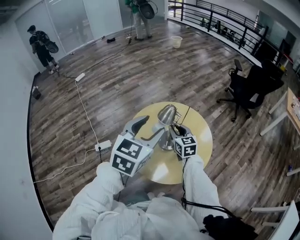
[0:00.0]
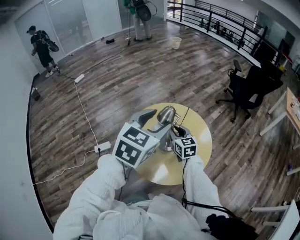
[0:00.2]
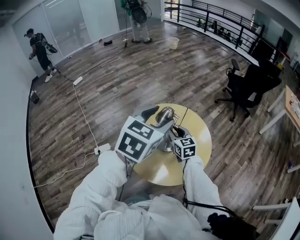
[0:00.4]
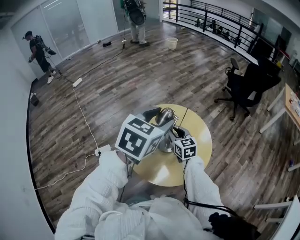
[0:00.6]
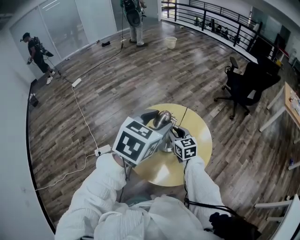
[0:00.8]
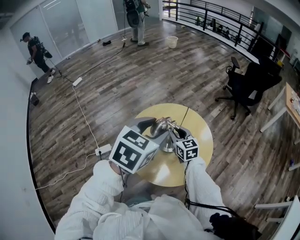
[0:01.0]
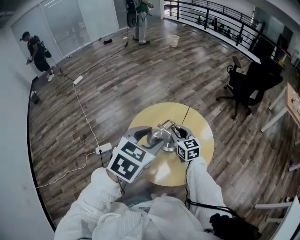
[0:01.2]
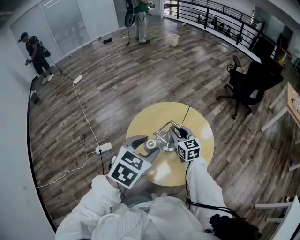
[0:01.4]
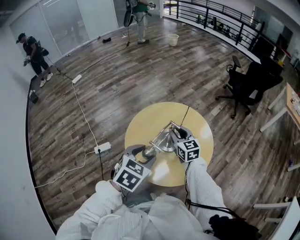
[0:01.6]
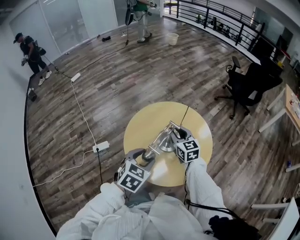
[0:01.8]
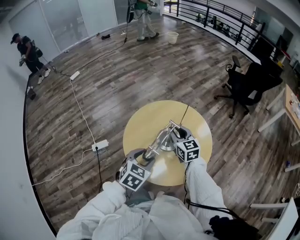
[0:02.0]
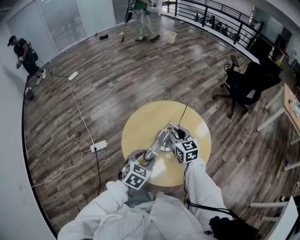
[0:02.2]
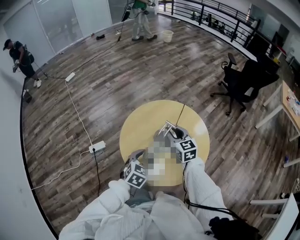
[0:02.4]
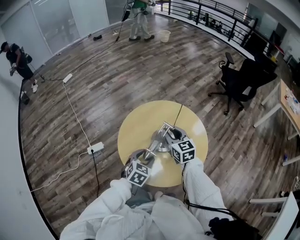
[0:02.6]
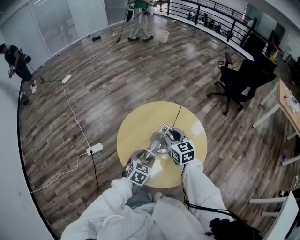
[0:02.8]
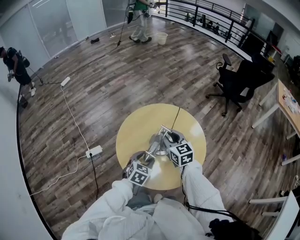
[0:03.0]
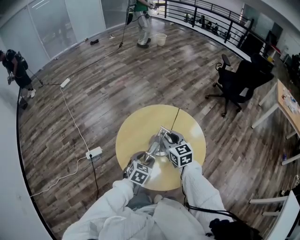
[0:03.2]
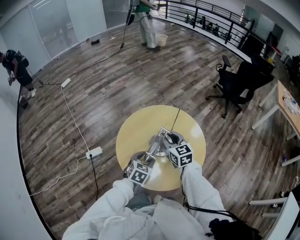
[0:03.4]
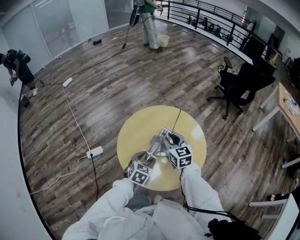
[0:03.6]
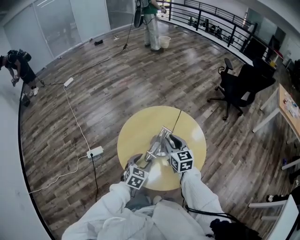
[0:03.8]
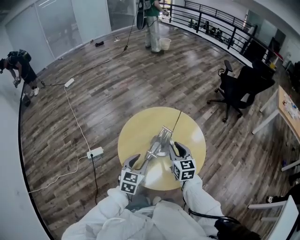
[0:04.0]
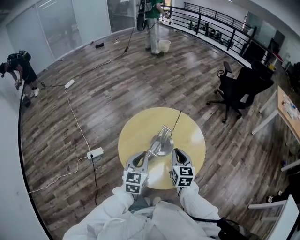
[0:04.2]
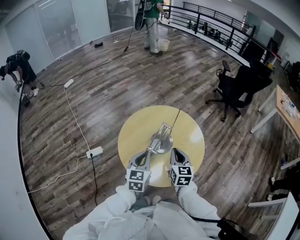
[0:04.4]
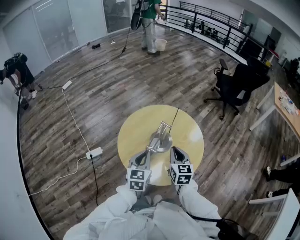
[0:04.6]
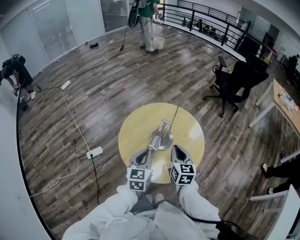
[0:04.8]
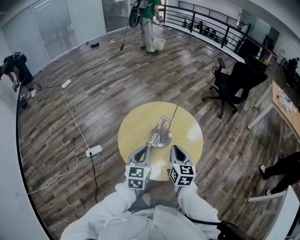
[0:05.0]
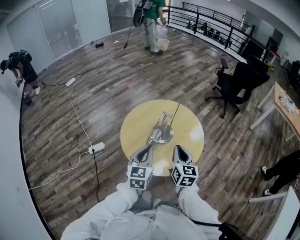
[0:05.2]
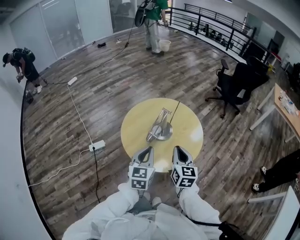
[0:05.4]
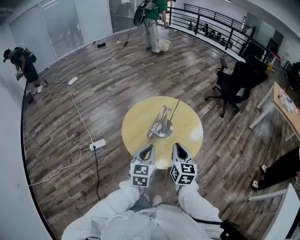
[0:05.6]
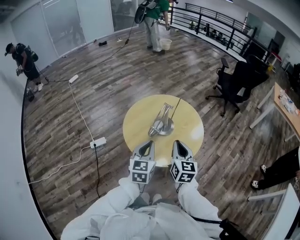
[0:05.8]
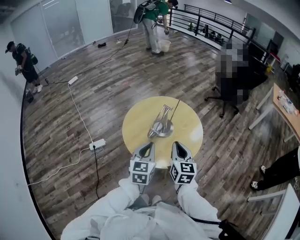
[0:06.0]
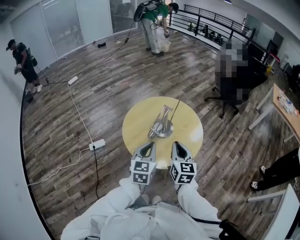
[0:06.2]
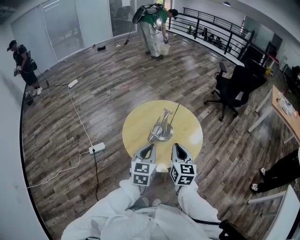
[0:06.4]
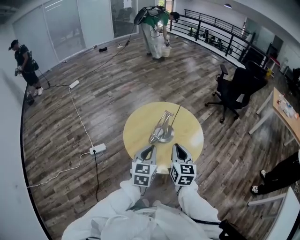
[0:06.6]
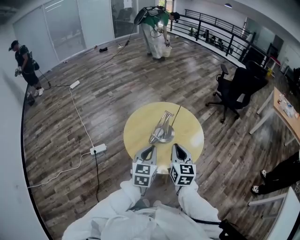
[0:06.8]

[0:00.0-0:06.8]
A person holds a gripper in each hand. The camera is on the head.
0:00.0 to 0:01.4: The left gripper goes some 5 cm downward, and rotates roughly 20 degrees.
0:01.4 to 0:02.8: The left gripper is displaced downward by some 20 cm.
0:02.8 to 0:04.0: The left gripper travels upward by about 5 cm. The right gripper moves backward, about 5 cm.
0:04.0 to 0:05.4: The right gripper travels backward by about 15 cm, and closes its fingers. Meanwhile the left gripper goes approximately 10 cm backward and upward, and closes.
0:05.4 to 0:06.8: There are only small adjustments of the grippers.

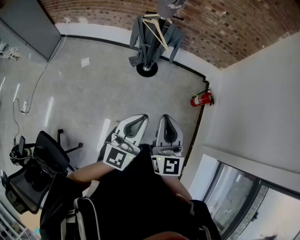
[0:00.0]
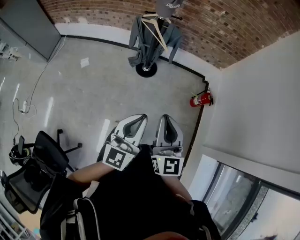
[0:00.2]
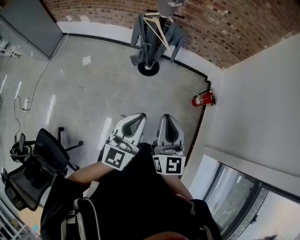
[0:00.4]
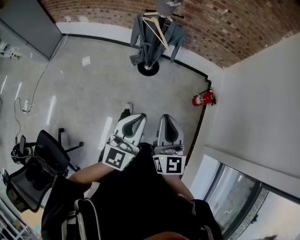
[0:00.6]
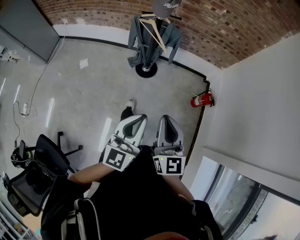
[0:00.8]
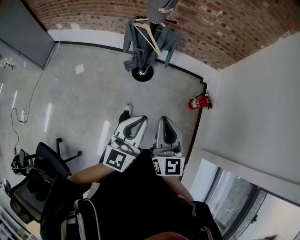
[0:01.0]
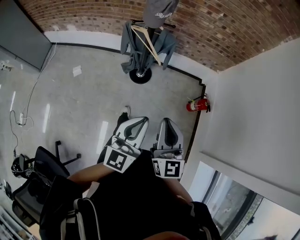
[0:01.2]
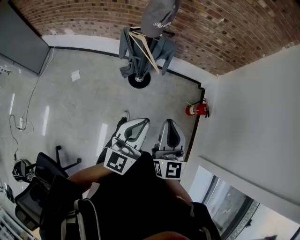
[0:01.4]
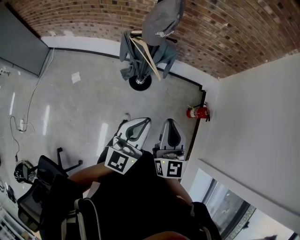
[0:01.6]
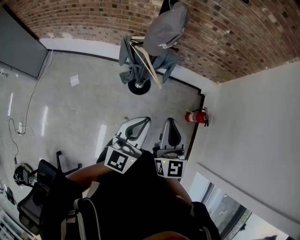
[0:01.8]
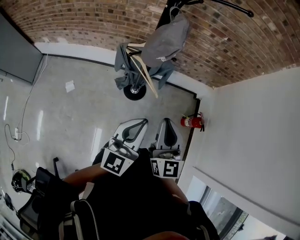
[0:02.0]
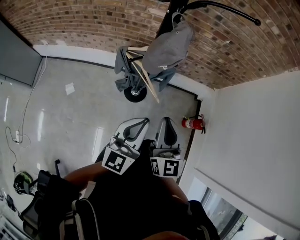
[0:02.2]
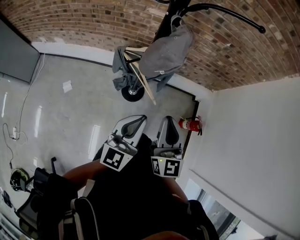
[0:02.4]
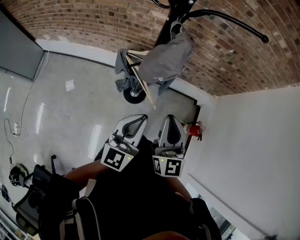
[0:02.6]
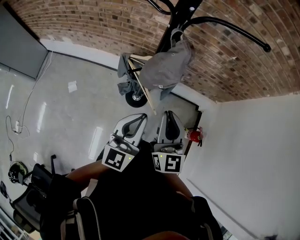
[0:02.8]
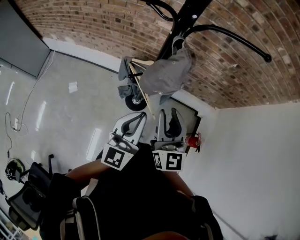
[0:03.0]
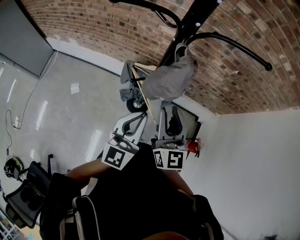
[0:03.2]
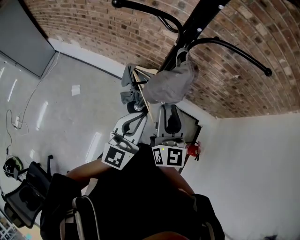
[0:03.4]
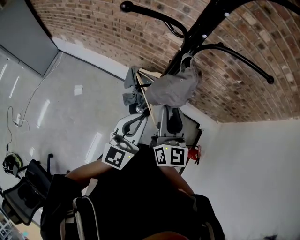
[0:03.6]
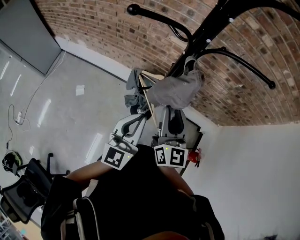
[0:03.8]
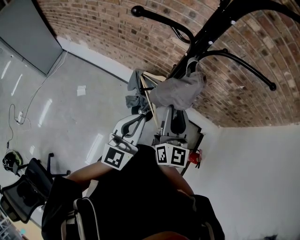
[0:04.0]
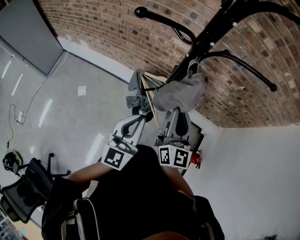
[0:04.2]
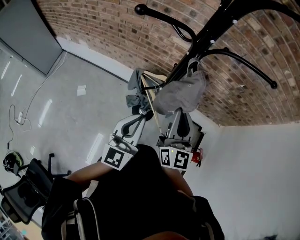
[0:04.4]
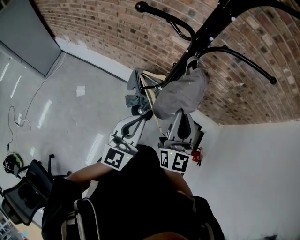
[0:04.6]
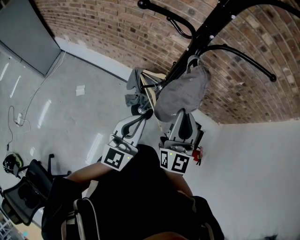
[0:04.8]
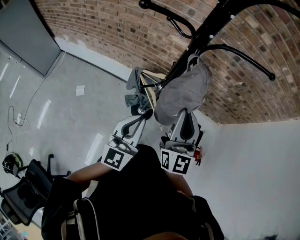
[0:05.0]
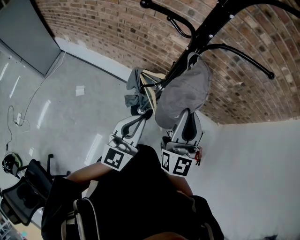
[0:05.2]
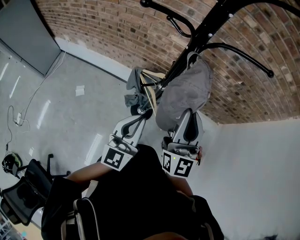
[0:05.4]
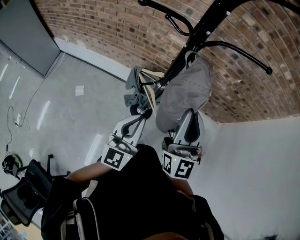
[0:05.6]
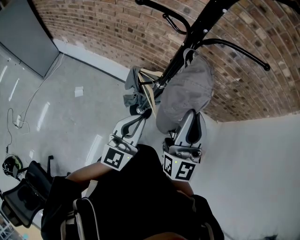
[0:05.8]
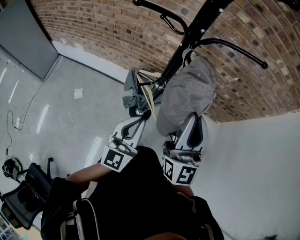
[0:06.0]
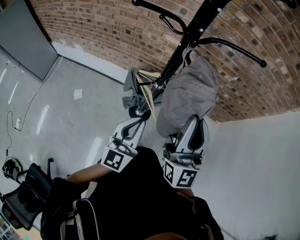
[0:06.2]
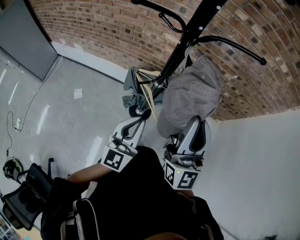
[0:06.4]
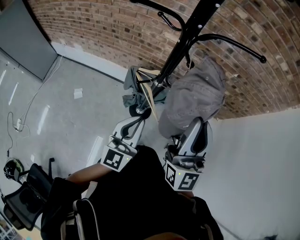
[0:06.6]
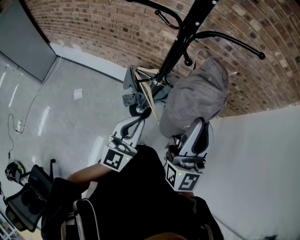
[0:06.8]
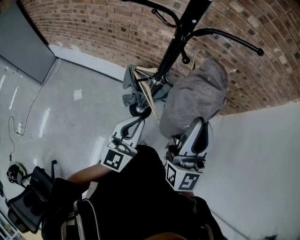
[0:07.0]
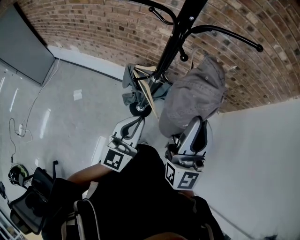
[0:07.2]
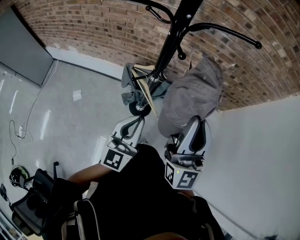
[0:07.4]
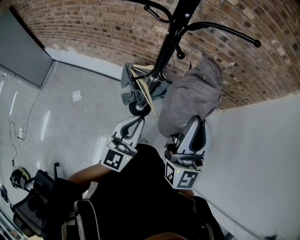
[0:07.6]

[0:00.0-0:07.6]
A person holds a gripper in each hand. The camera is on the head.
0:00.0 to 0:01.6: The grippers both shift forward by roughly 25 cm.
0:01.6 to 0:03.0: Both grippers move forward, roughly 25 cm. The right gripper opens up.
0:03.0 to 0:04.6: The right gripper changes place by roughly 5 cm.
0:04.6 to 0:06.0: The right gripper goes approximately 10 cm upward and backward.
0:06.0 to 0:07.6: The grippers make only small movements.

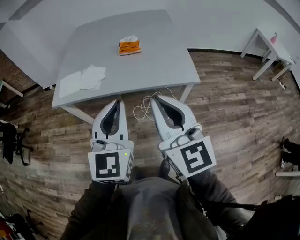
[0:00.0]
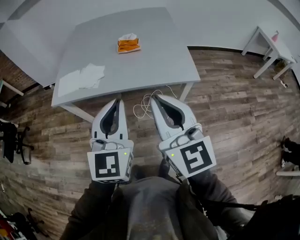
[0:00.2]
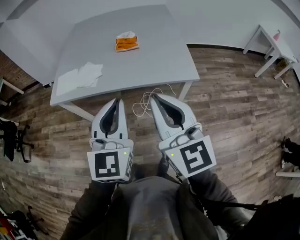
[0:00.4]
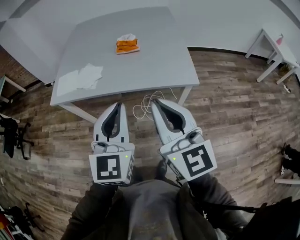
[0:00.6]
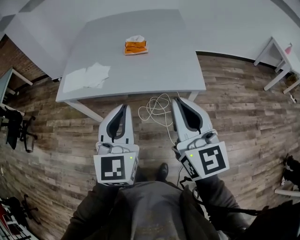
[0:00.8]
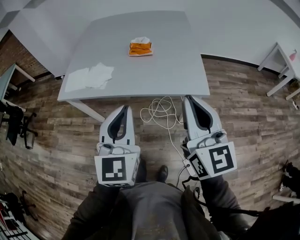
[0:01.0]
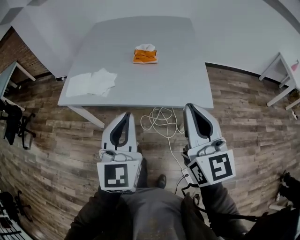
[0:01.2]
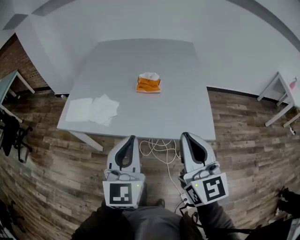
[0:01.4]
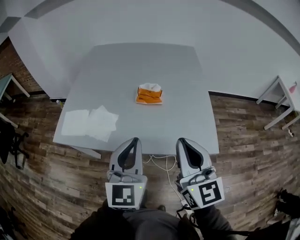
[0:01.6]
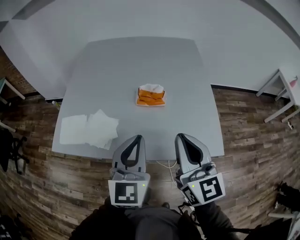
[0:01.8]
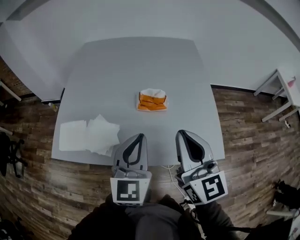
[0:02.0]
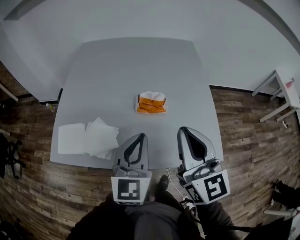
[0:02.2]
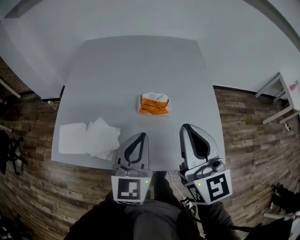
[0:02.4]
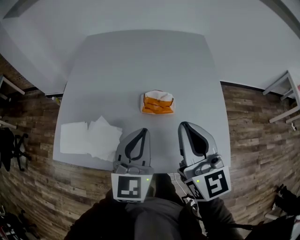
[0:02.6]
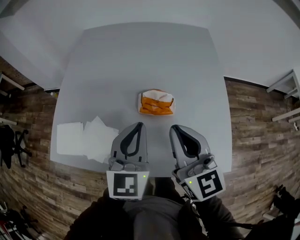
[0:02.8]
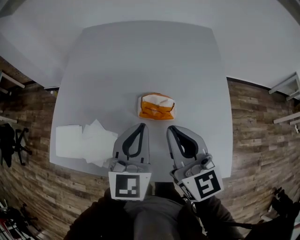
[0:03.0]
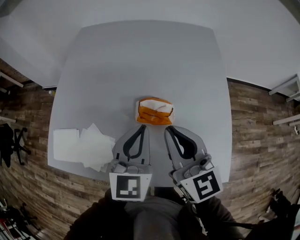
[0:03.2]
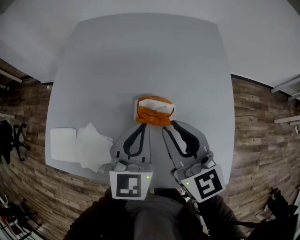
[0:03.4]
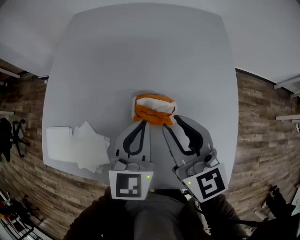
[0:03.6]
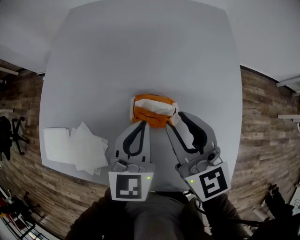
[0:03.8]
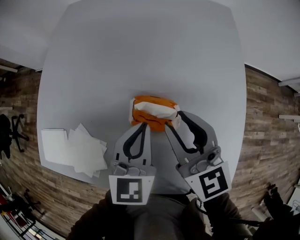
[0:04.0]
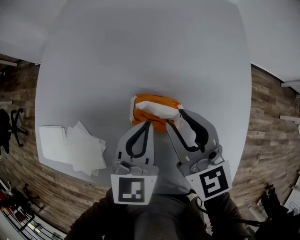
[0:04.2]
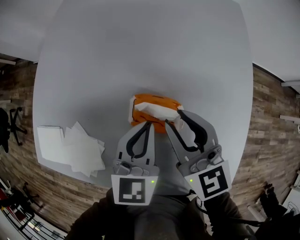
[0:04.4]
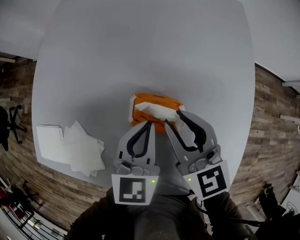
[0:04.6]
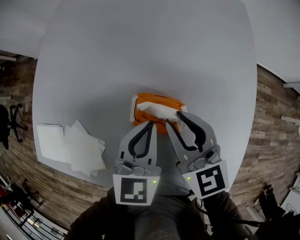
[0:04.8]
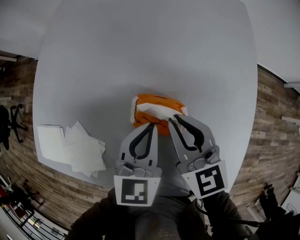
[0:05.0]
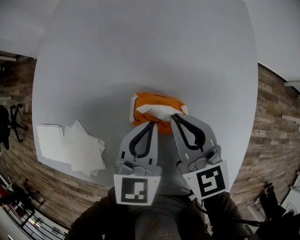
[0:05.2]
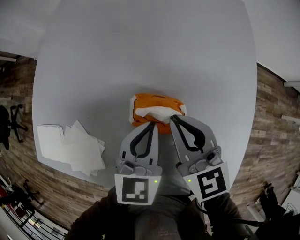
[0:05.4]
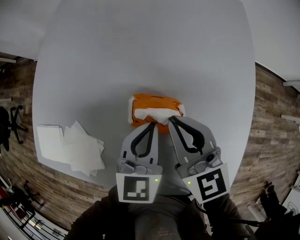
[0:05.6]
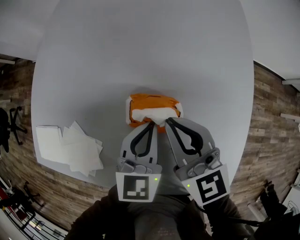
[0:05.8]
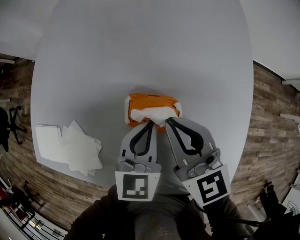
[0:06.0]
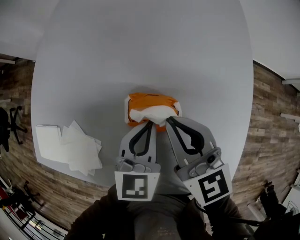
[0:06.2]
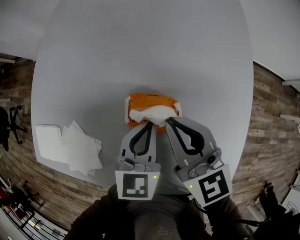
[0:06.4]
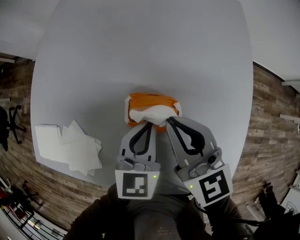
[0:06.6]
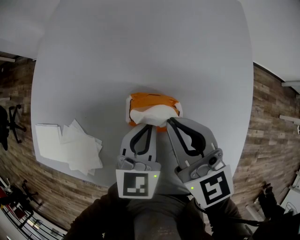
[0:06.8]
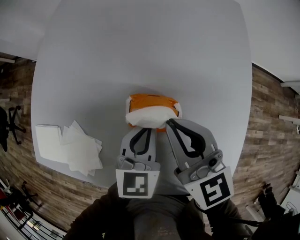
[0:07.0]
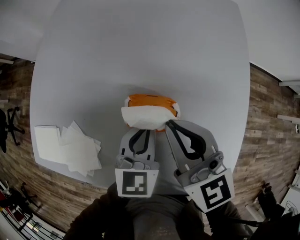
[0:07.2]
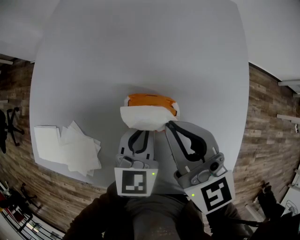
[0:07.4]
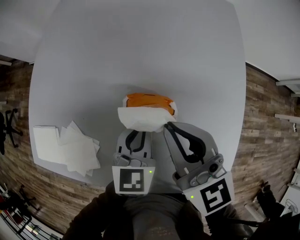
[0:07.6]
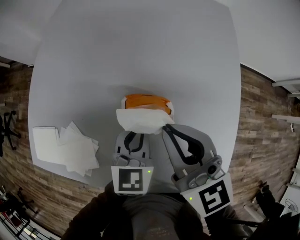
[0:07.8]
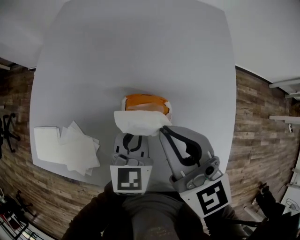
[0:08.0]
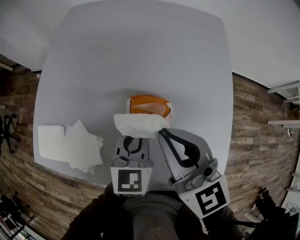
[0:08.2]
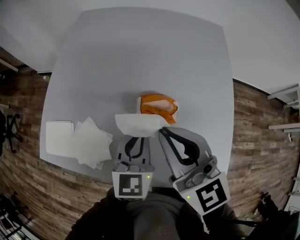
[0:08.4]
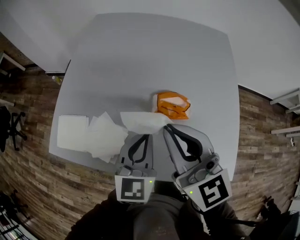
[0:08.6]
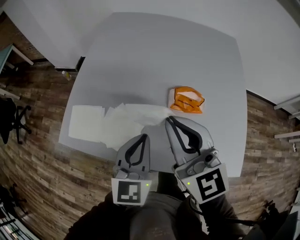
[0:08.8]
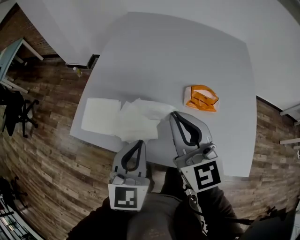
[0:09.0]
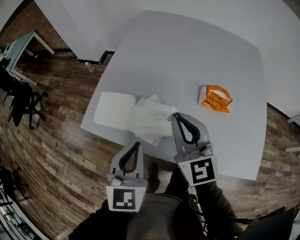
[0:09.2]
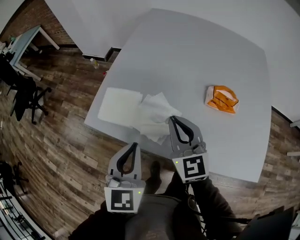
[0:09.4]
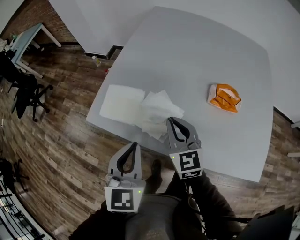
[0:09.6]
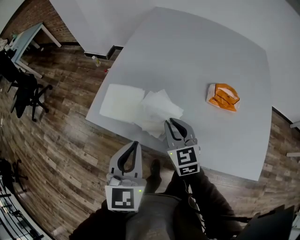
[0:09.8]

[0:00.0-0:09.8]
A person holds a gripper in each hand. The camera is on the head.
0:00.0 to 0:01.4: The right gripper shifts approximately 15 cm forward and to the right. Meanwhile the left gripper is displaced forward by approximately 15 cm.
0:01.4 to 0:02.8: The grippers both shift forward by some 30 cm.
0:02.8 to 0:04.2: The left gripper is displaced downward, forward and to the right by approximately 20 cm; the right gripper heads forward and downward, covering approximately 20 cm, and opens up.
0:04.2 to 0:05.6: The right gripper closes.
0:05.6 to 0:07.0: There are only small adjustments of the grippers.
0:07.0 to 0:08.4: The right gripper moves upward, backward and to the left, approximately 15 cm. Meanwhile the left gripper shifts about 10 cm upward, to the left and backward.
0:08.4 to 0:09.8: The right gripper shifts approximately 30 cm to the left and downward. Meanwhile the left gripper goes about 35 cm to the left and backward.
